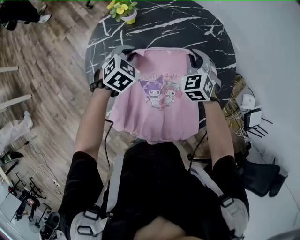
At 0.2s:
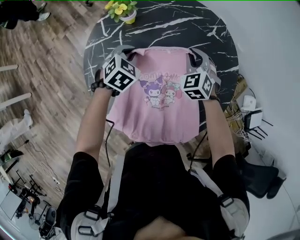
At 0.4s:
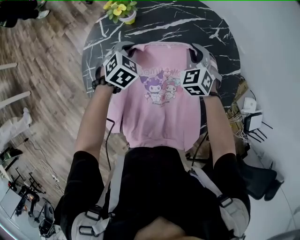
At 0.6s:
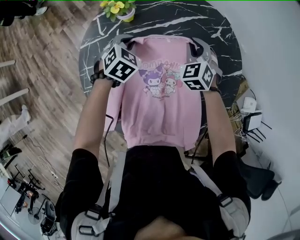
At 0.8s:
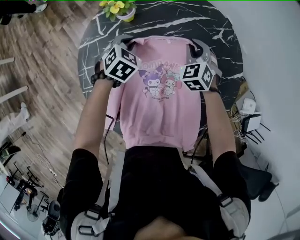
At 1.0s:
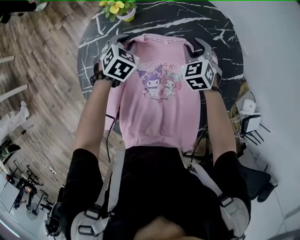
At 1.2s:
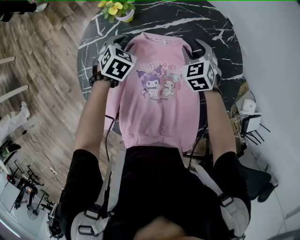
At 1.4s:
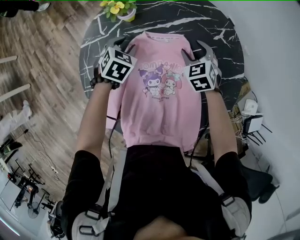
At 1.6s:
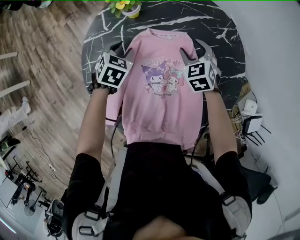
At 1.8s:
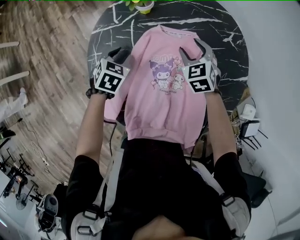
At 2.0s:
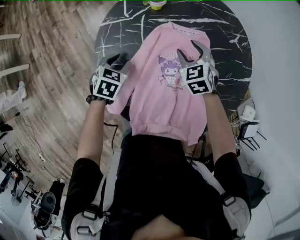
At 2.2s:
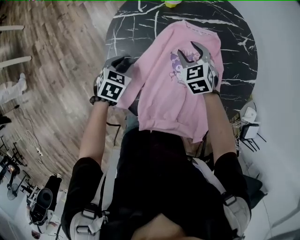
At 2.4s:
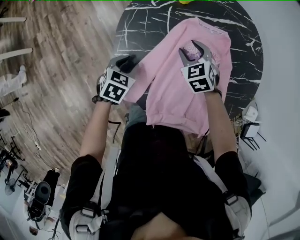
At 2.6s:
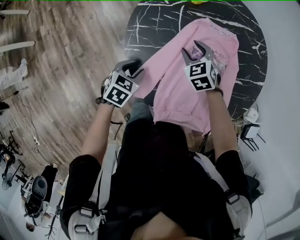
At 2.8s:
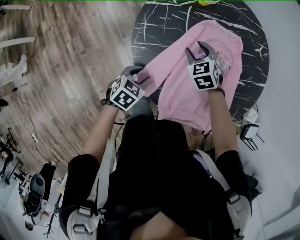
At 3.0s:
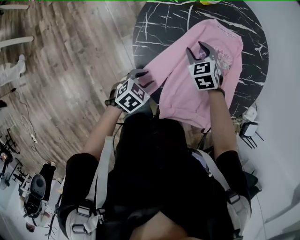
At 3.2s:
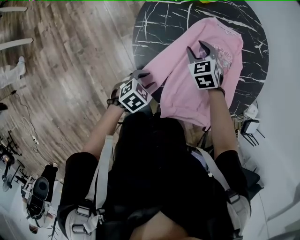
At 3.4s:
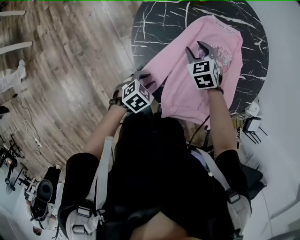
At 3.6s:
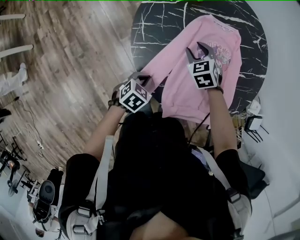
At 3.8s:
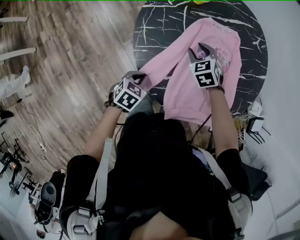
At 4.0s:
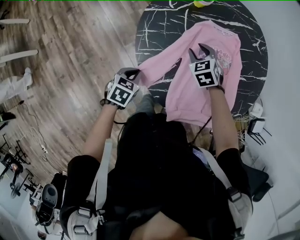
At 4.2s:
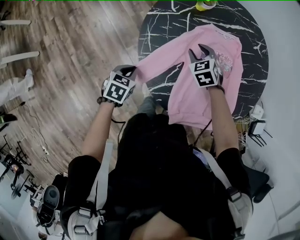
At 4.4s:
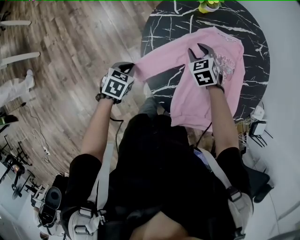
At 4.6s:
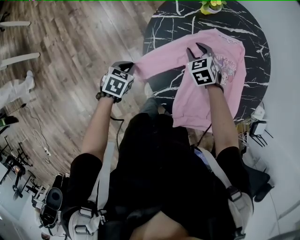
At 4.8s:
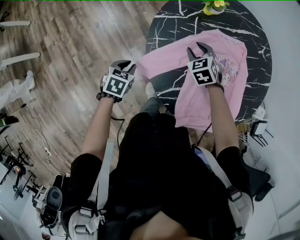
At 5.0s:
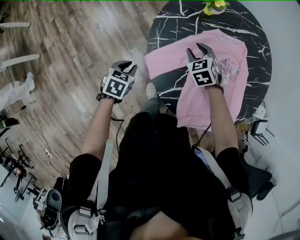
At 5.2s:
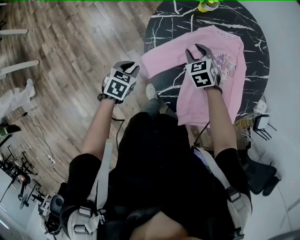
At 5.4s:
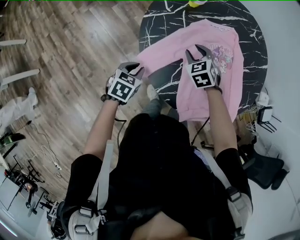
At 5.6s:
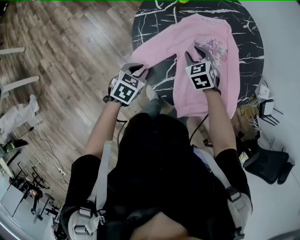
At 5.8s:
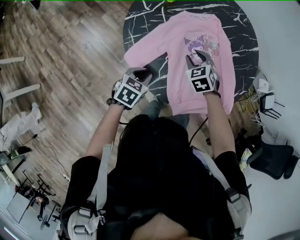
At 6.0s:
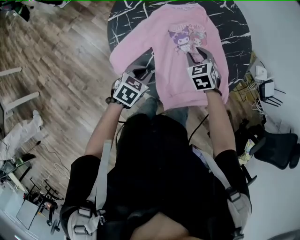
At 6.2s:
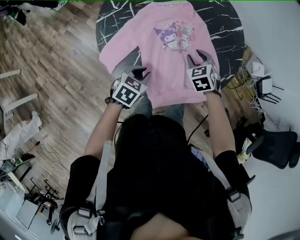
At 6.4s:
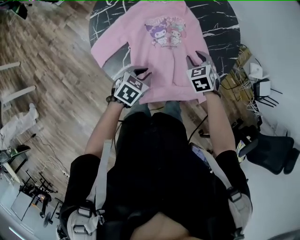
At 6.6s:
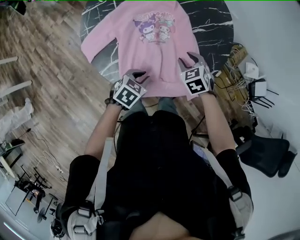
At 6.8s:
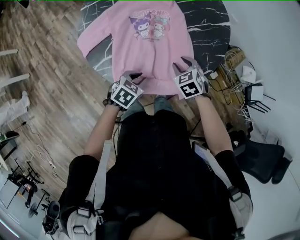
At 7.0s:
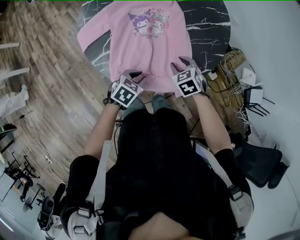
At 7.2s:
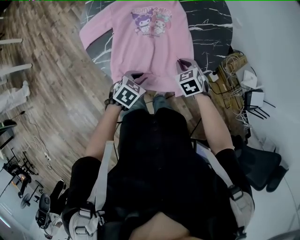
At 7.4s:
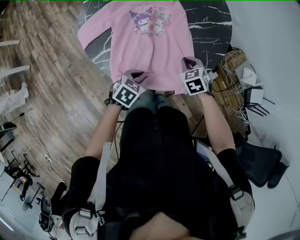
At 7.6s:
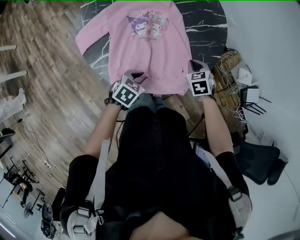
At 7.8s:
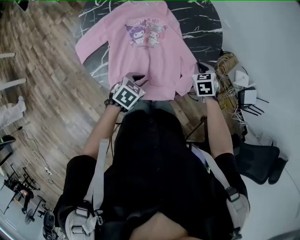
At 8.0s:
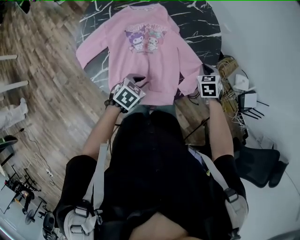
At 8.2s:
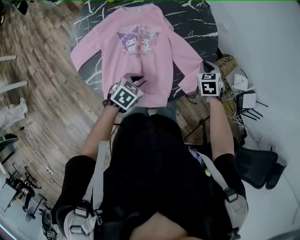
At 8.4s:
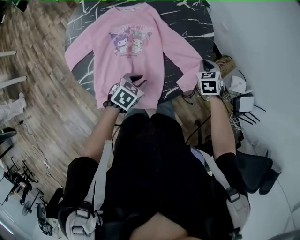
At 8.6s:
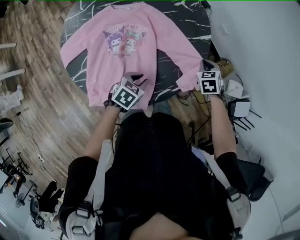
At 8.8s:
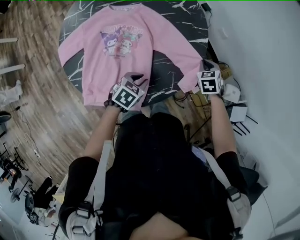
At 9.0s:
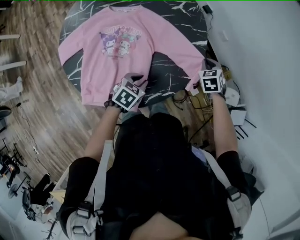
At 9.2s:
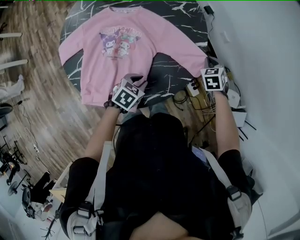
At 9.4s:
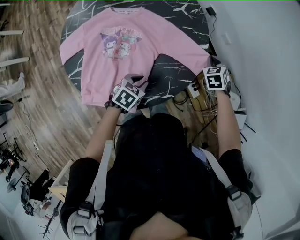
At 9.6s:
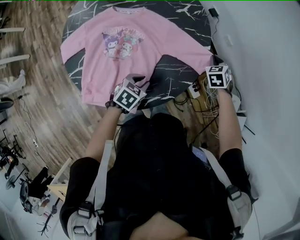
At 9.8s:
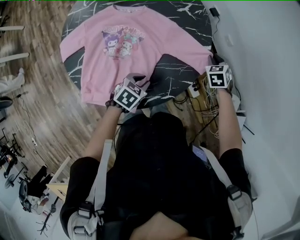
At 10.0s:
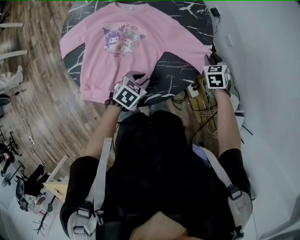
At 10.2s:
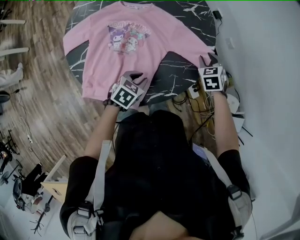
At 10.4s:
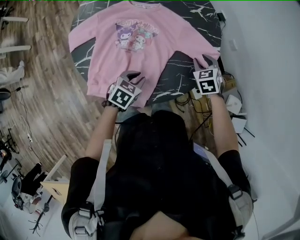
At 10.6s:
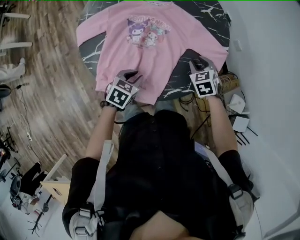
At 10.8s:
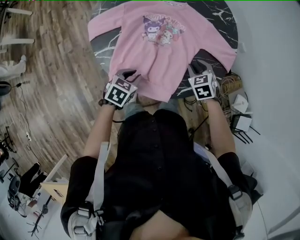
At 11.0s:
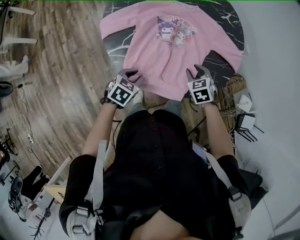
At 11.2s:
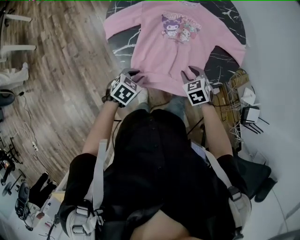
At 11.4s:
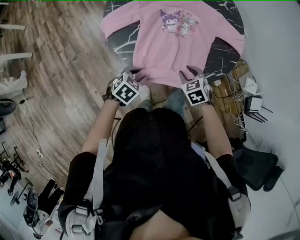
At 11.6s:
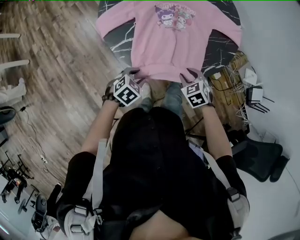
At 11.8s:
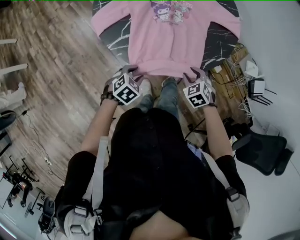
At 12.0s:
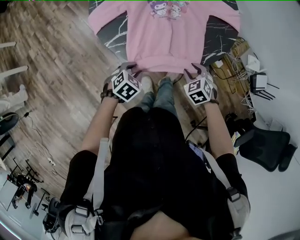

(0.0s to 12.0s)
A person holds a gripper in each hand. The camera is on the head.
0.0s - 1.6s: The right gripper is displaced downward and forward by some 10 cm, and opens up; the left gripper moves downward and to the left, some 10 cm, changes its angle by roughly 20 degrees, and opens its fingers.
1.6s - 3.0s: The right gripper is displaced to the left and backward by about 25 cm. Meanwhile the left gripper shifts approximately 30 cm backward, and swivels approximately 20 degrees.
3.0s - 4.4s: The left gripper travels to the left by roughly 15 cm, and closes.
4.4s - 6.0s: The left gripper travels to the right by roughly 20 cm, and rotates about 30 degrees. Meanwhile the right gripper is displaced to the right and backward by approximately 20 cm, and turns by approximately 20 degrees.
6.0s - 7.6s: Both grippers travel together to the right, about 25 cm. The right gripper closes.
7.6s - 9.0s: Both grippers travel together forward and to the right, some 25 cm.
9.0s - 10.4s: The left gripper travels to the left by roughly 5 cm. The right gripper heads to the left, covering roughly 10 cm.
10.4s - 12.0s: The left gripper travels to the left and backward by roughly 25 cm, and rotates roughly 30 degrees; the right gripper goes roughly 35 cm backward and to the left.

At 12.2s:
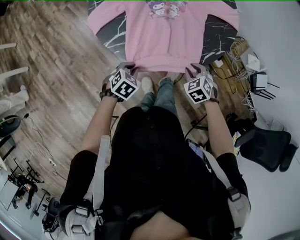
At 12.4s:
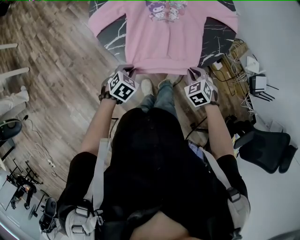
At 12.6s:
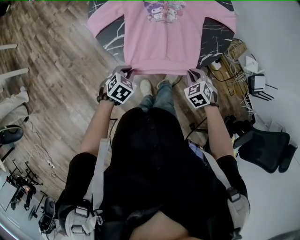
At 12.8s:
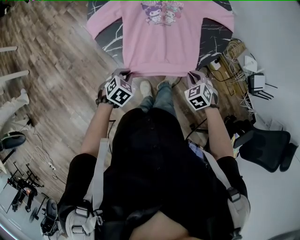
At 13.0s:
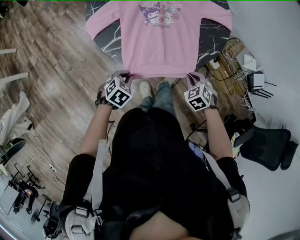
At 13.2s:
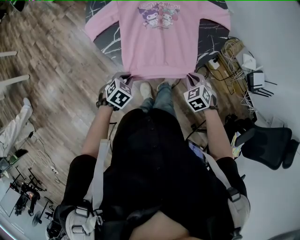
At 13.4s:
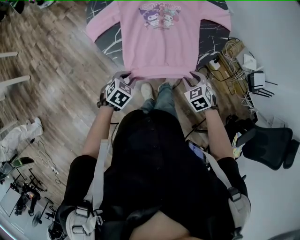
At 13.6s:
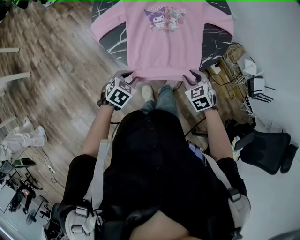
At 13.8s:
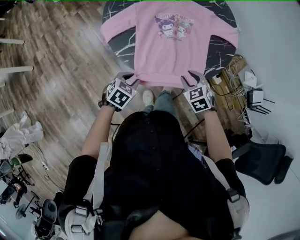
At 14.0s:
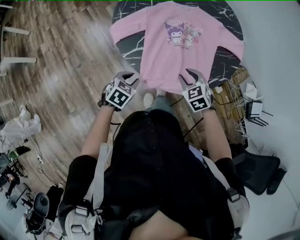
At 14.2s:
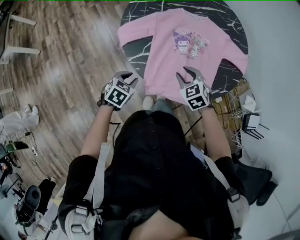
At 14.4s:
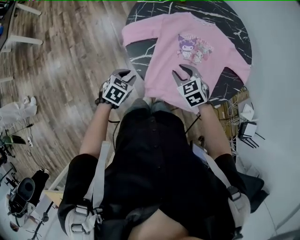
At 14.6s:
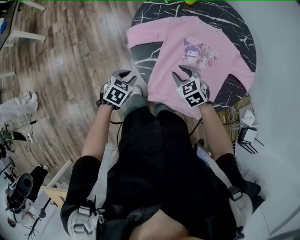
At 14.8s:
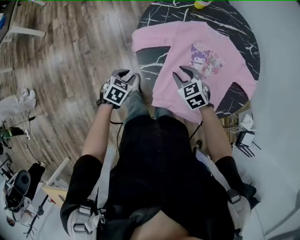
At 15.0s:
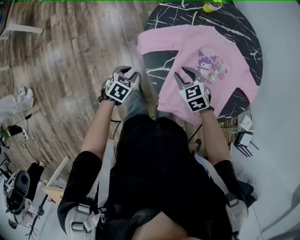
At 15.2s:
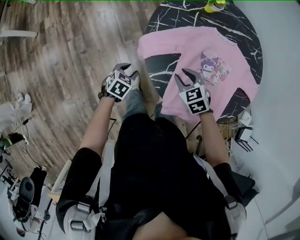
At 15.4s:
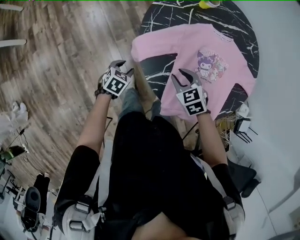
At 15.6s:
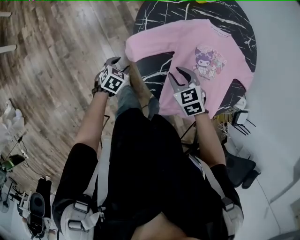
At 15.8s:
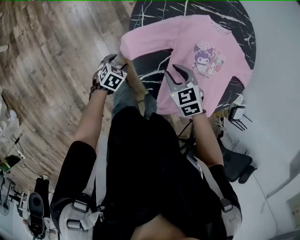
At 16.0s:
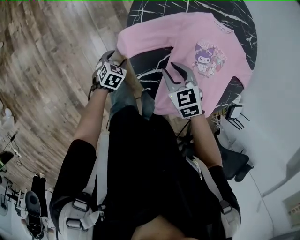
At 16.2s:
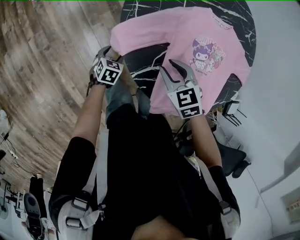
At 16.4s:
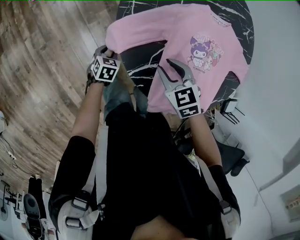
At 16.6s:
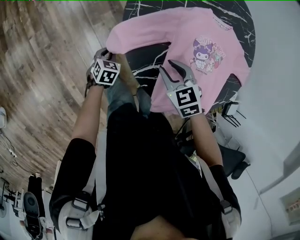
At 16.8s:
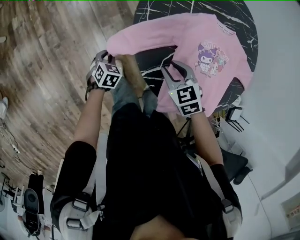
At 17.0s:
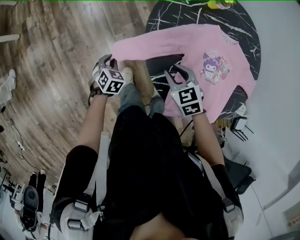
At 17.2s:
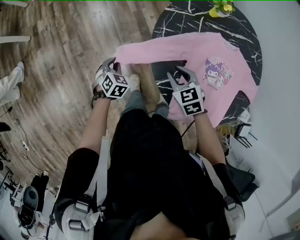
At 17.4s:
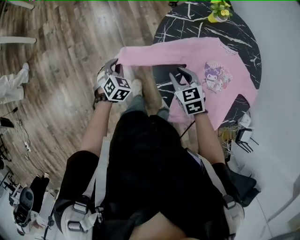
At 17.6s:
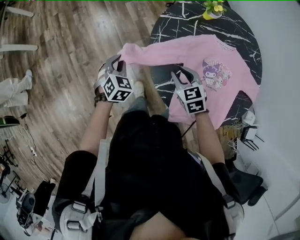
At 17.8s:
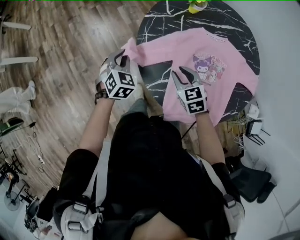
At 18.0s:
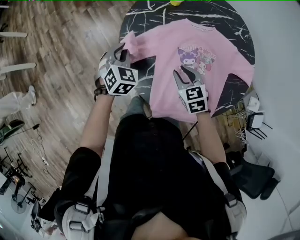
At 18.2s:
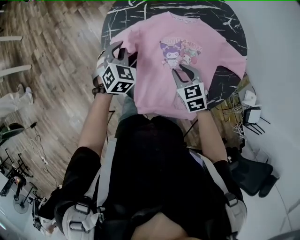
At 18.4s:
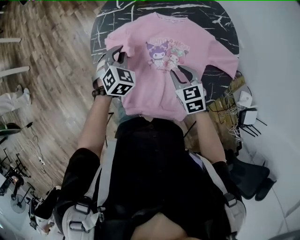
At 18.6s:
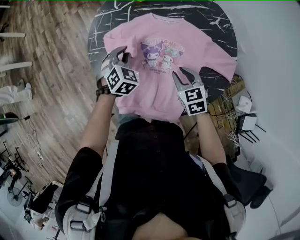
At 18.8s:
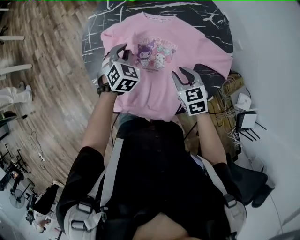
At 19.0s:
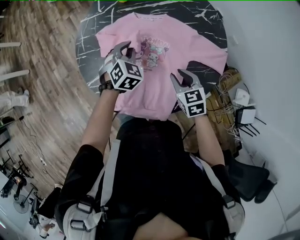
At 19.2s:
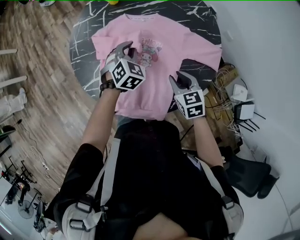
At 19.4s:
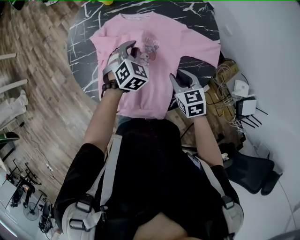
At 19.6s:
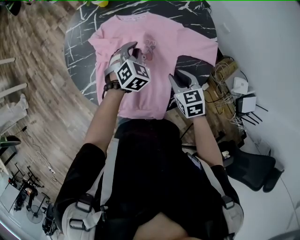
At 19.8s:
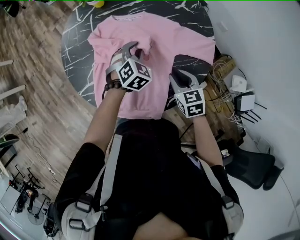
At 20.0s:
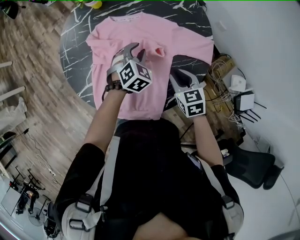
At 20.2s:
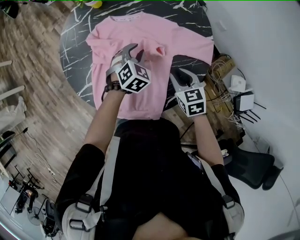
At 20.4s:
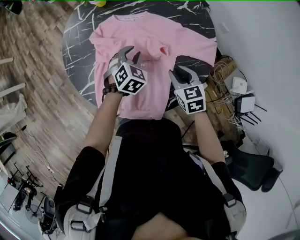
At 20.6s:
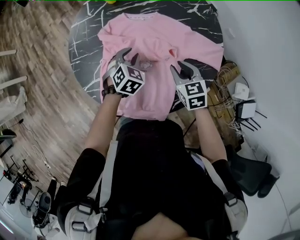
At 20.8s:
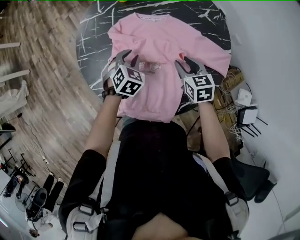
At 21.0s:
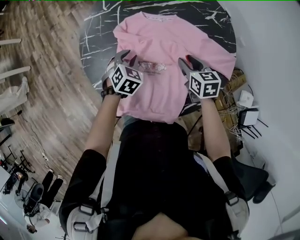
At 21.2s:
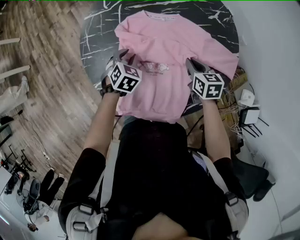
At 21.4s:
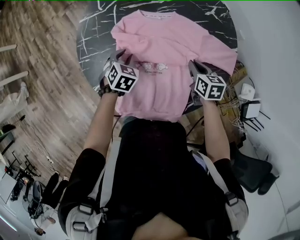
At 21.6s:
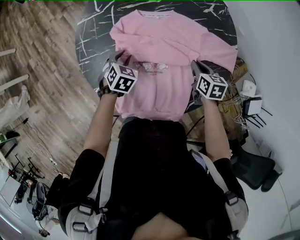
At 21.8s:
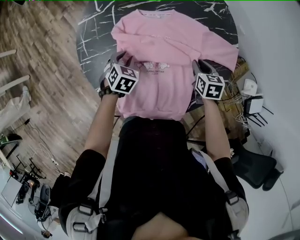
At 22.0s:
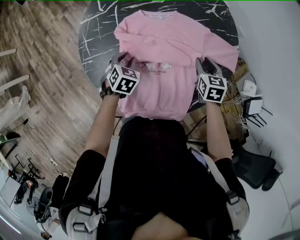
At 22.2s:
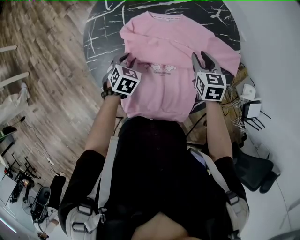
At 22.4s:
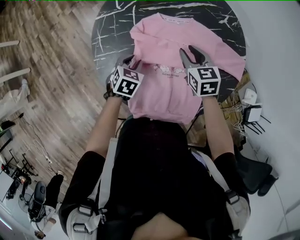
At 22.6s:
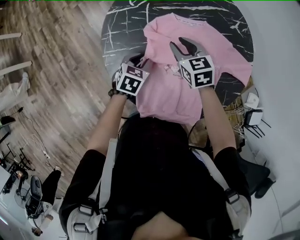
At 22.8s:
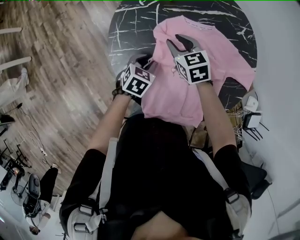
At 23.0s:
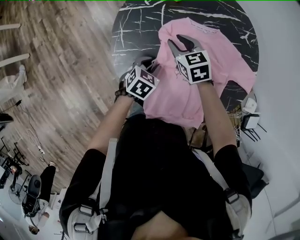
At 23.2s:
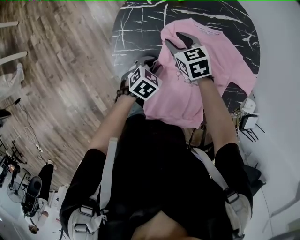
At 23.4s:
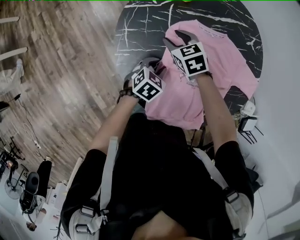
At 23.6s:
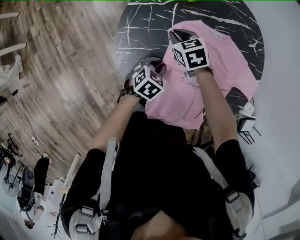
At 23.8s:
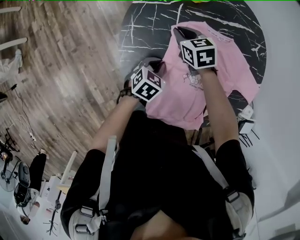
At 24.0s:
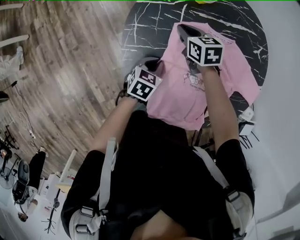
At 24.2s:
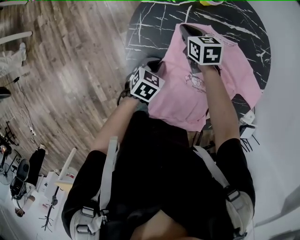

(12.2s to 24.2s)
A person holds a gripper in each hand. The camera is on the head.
12.2s - 13.8s: The right gripper shifts roughly 10 cm upward and to the left. The left gripper shifts by approximately 5 cm.
13.8s - 15.2s: The right gripper shifts by about 30 cm, while the left gripper changes place by roughly 25 cm.
15.2s - 16.6s: The left gripper moves downward, roughly 15 cm.
16.6s - 18.2s: The right gripper moves to the right, some 15 cm. The left gripper heads upward and to the right, covering roughly 35 cm, and swivels approximately 40 degrees.
18.2s - 19.8s: Both grippers travel together to the right, approximately 25 cm.
19.8s - 21.2s: The right gripper heads forward, covering roughly 10 cm. Meanwhile the left gripper heads to the left, covering about 15 cm.
21.2s - 22.6s: The left gripper goes about 5 cm to the left, and rotates roughly 20 degrees; the right gripper moves to the left, some 20 cm, and rotates about 20 degrees.
22.6s - 24.2s: The left gripper shifts by approximately 5 cm. The right gripper is displaced to the left, forward and downward by about 15 cm.
